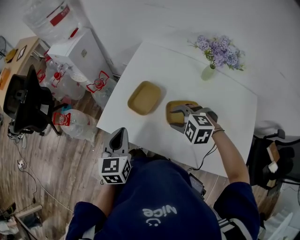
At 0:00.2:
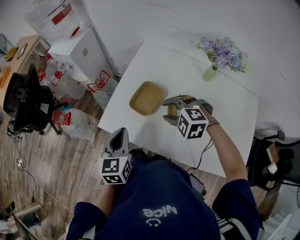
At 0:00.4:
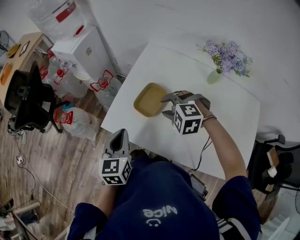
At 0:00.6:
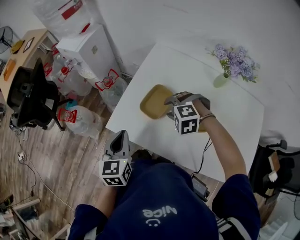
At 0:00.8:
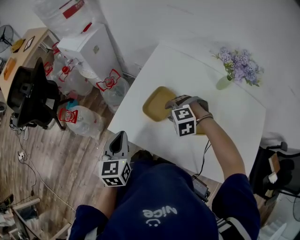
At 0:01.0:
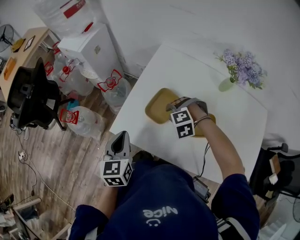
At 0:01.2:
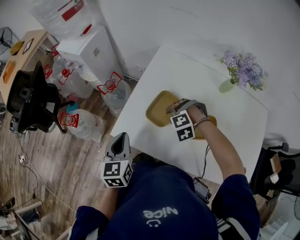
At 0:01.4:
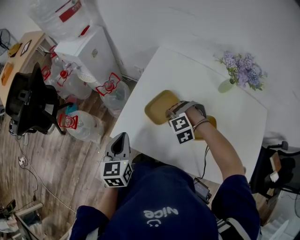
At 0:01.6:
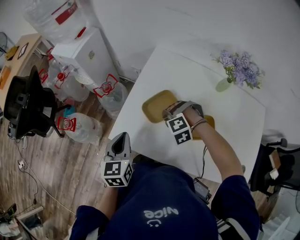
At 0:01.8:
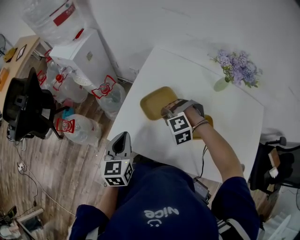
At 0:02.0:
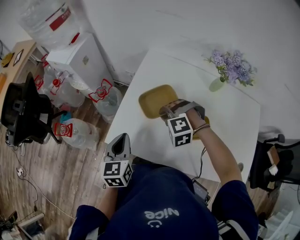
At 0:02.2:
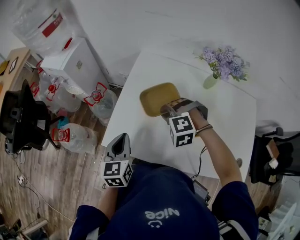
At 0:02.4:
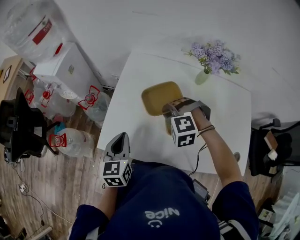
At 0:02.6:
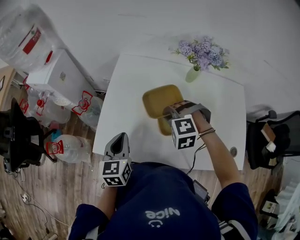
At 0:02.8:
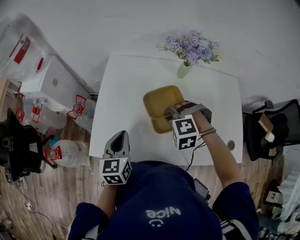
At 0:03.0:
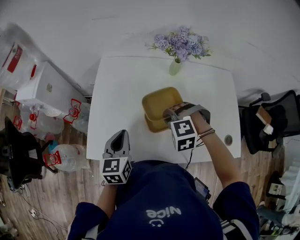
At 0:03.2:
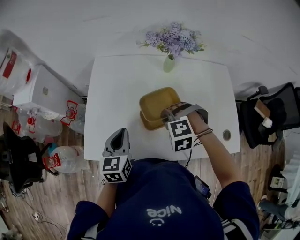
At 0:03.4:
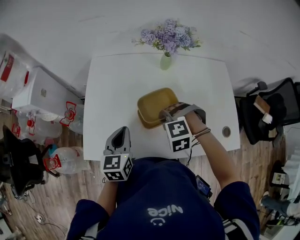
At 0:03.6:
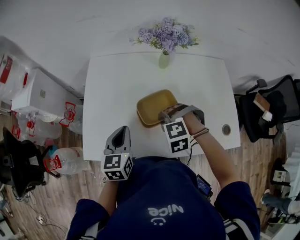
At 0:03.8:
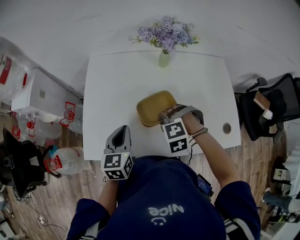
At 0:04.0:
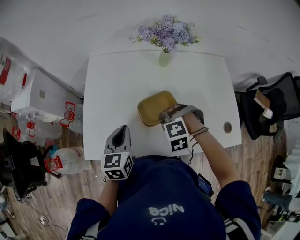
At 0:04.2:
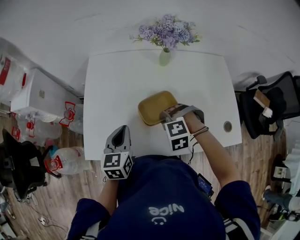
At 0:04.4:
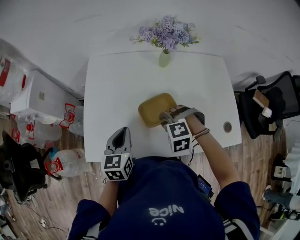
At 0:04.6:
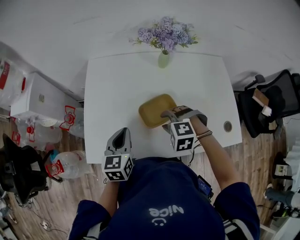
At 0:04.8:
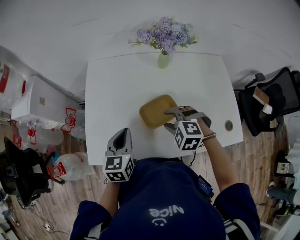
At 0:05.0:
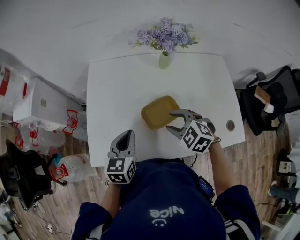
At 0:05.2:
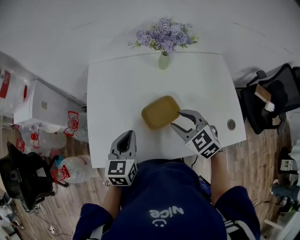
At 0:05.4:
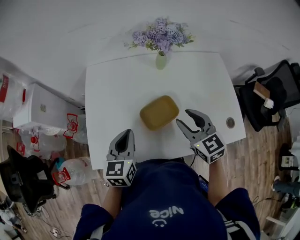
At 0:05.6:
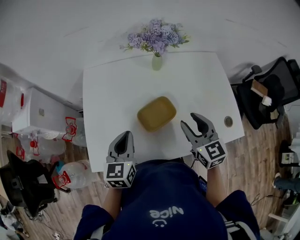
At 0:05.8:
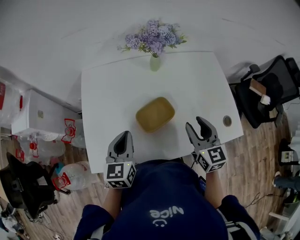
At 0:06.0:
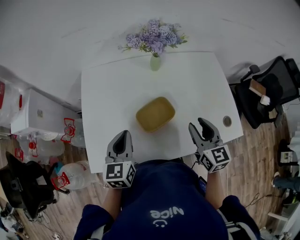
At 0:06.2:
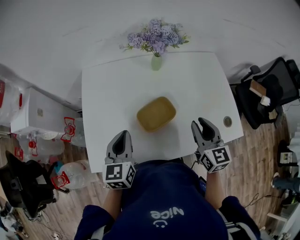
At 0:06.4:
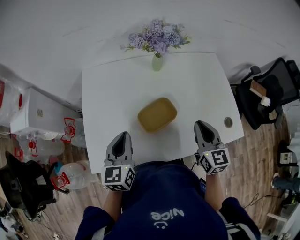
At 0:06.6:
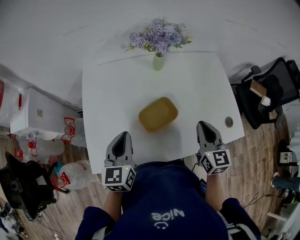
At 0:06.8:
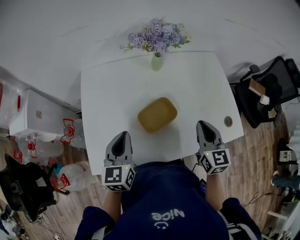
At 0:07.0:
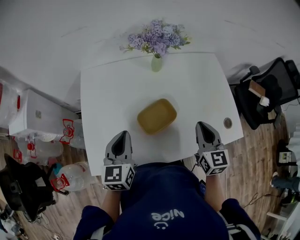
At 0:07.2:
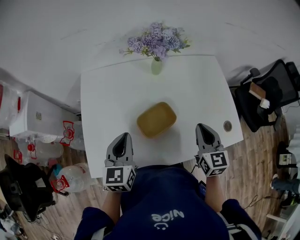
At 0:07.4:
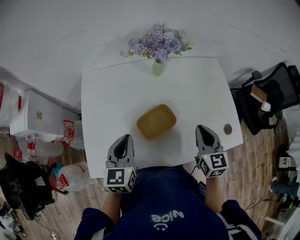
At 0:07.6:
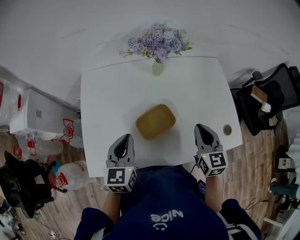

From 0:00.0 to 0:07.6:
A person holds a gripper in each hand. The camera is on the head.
From 0:00.0 to 0:01.6: The right gripper moves approximately 15 cm, rotates about 30 degrees, and closes. The left gripper shifts by some 10 cm.
From 0:01.6 to 0:03.0: The right gripper changes place by approximately 20 cm, and rotates approximately 30 degrees. The left gripper shifts by about 15 cm, and changes its angle by roughly 20 degrees.
From 0:03.0 to 0:04.6: The right gripper changes place by approximately 5 cm, and opens its fingers.
From 0:04.6 to 0:06.0: The right gripper moves to the right and upward, approximately 15 cm, and tips its fingers upward by some 50 degrees.
From 0:06.0 to 0:07.6: The right gripper closes up.

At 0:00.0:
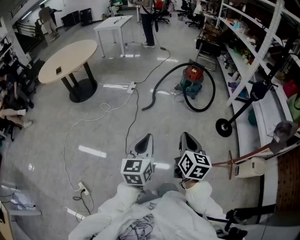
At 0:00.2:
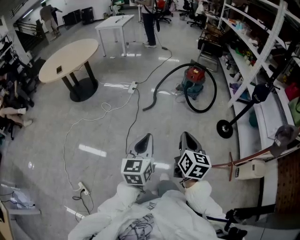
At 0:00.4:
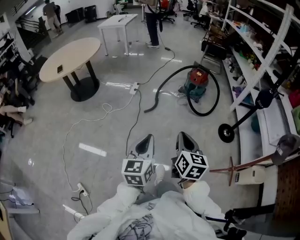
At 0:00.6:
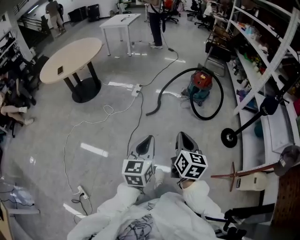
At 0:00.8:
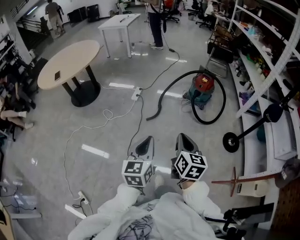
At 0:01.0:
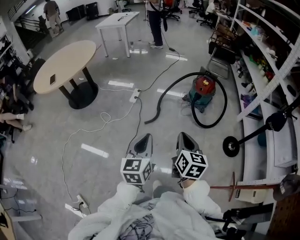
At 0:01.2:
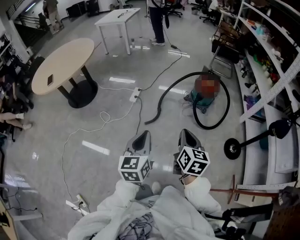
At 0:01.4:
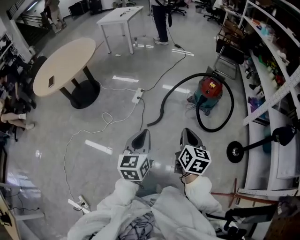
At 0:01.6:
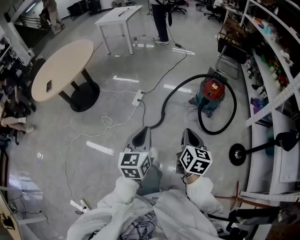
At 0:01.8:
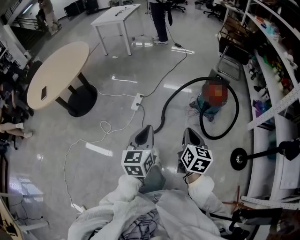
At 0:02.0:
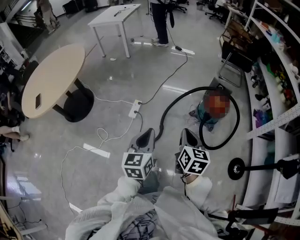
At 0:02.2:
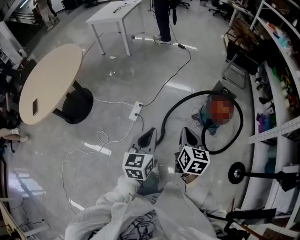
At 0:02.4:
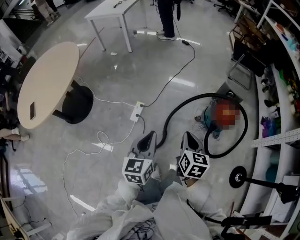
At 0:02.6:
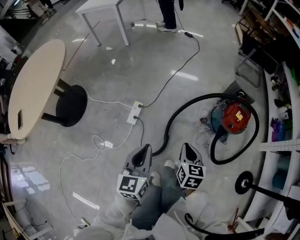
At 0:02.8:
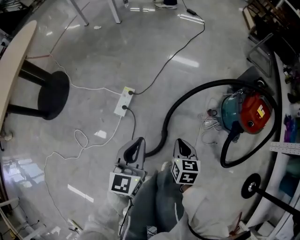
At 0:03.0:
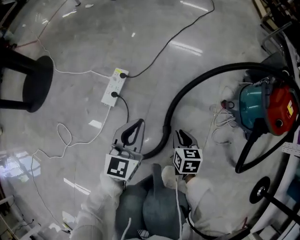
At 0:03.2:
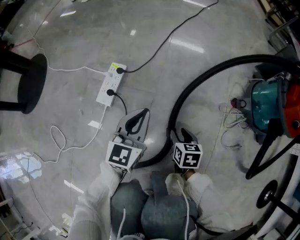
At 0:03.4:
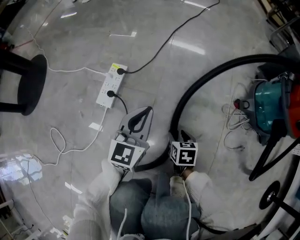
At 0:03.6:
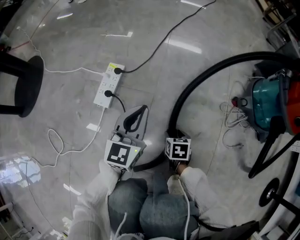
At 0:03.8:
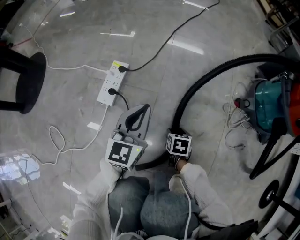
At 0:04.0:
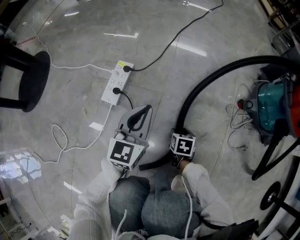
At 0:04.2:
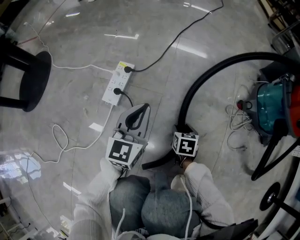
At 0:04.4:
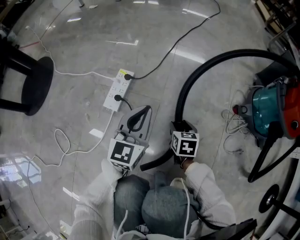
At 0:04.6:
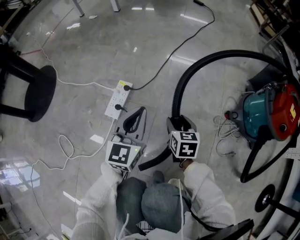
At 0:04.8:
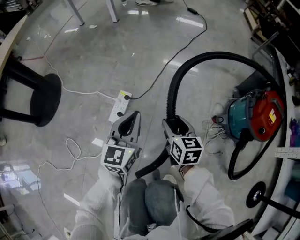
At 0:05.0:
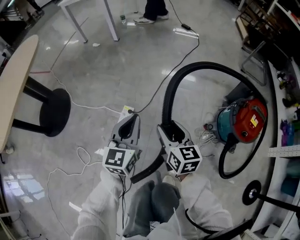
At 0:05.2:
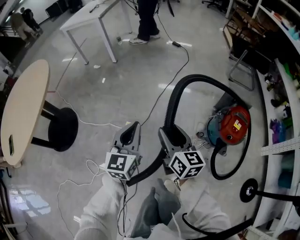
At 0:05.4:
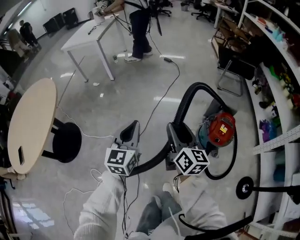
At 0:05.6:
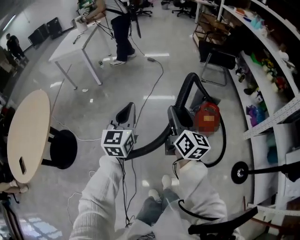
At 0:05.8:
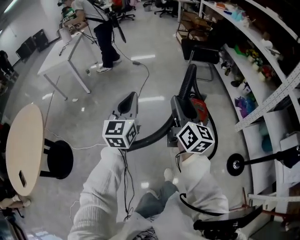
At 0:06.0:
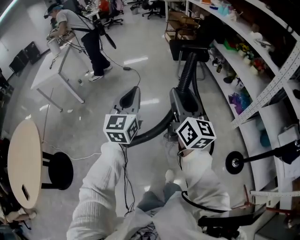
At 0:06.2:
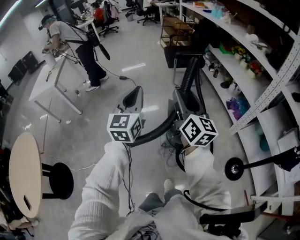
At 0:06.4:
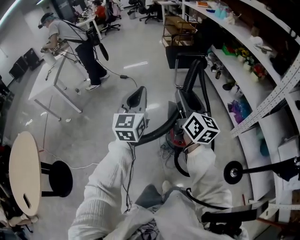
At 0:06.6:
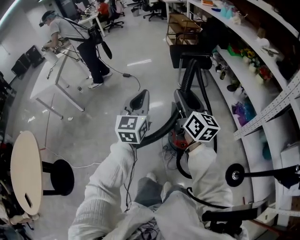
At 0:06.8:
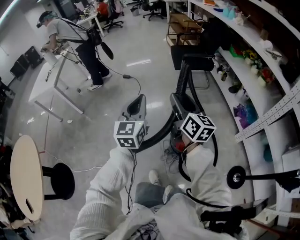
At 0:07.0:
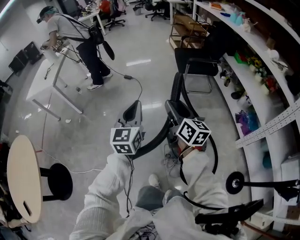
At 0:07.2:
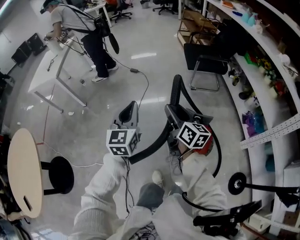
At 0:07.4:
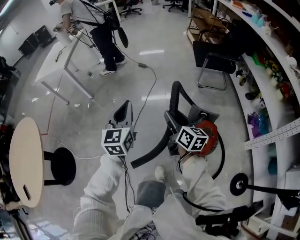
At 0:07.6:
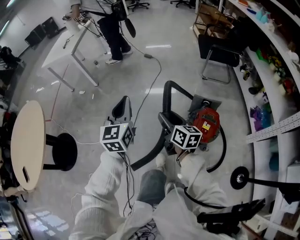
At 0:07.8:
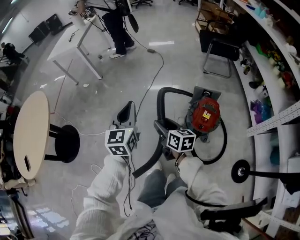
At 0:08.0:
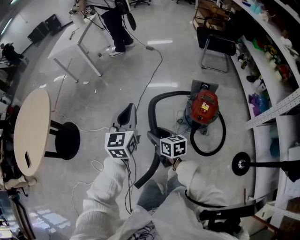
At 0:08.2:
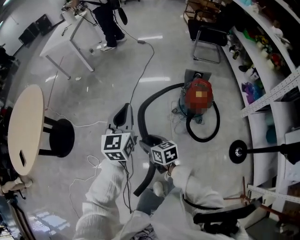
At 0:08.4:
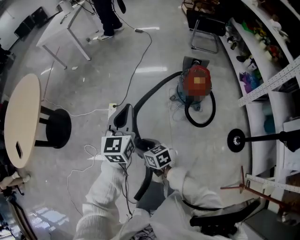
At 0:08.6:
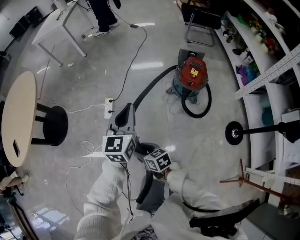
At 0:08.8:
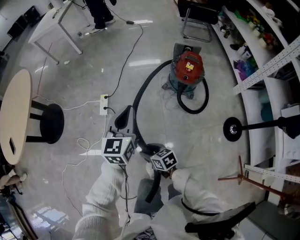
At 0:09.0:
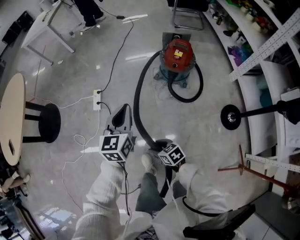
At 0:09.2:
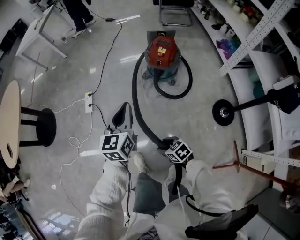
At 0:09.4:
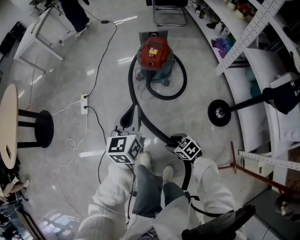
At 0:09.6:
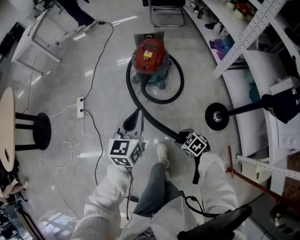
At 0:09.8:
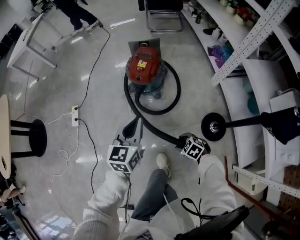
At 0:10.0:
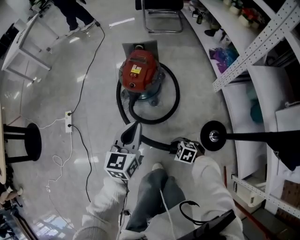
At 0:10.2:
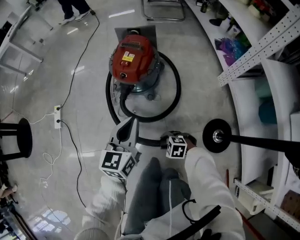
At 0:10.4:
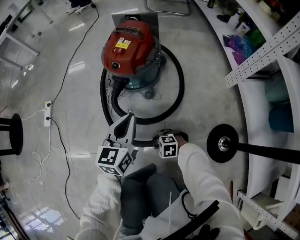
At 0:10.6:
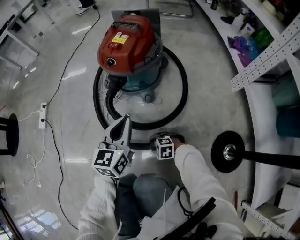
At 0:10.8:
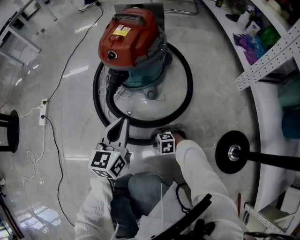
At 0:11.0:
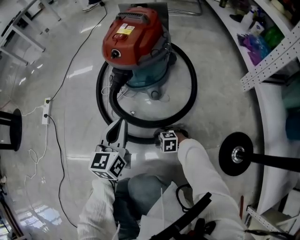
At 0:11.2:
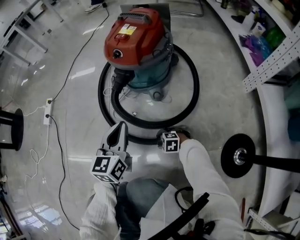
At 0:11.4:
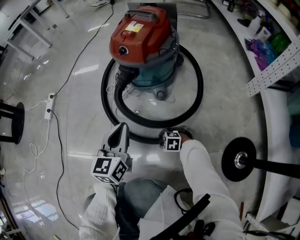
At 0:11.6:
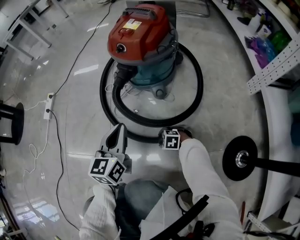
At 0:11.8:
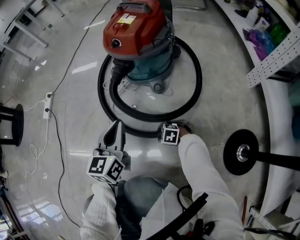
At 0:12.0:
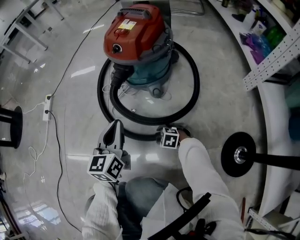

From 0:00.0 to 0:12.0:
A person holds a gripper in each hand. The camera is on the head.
From 0:00.0 to 0:01.6: Both grippers are carried forward, approximately 50 cm.
From 0:01.6 to 0:03.0: The pair of grippers is taken forward, some 60 cm. Both grippers travel together downward, some 70 cm. The right gripper changes its angle by about 30 degrees.
From 0:03.0 to 0:04.4: Both grippers move downward and forward, roughly 10 cm. The right gripper opens up.
From 0:04.4 to 0:06.0: The grippers both shift upward by about 90 cm. The right gripper tilts its fingers about 60 degrees upward. The left gripper turns by some 20 degrees.
From 0:06.0 to 0:07.6: The left gripper changes place by approximately 20 cm, and changes its angle by about 20 degrees. Meanwhile the right gripper heads downward, covering approximately 25 cm, and changes its angle by roughly 40 degrees.
From 0:07.6 to 0:09.0: The pair of grippers is taken backward, approximately 50 cm. The right gripper travels downward by some 25 cm, and points its fingers about 30 degrees further downward.
From 0:09.0 to 0:10.4: The pair of grippers is taken to the right, approximately 40 cm. The grippers both shift downward by approximately 40 cm. The right gripper twists approximately 50 degrees counterclockwise, seen from behind.
From 0:10.4 to 0:12.0: The right gripper travels downward by some 15 cm. Meanwhile the left gripper shifts approximately 15 cm downward and to the left.

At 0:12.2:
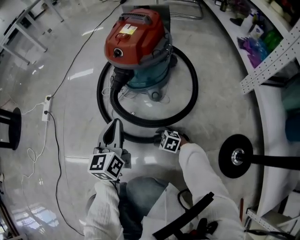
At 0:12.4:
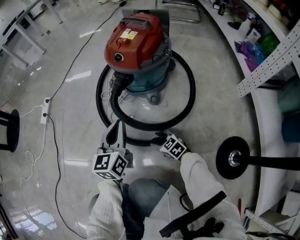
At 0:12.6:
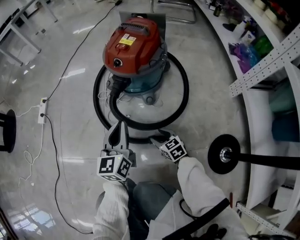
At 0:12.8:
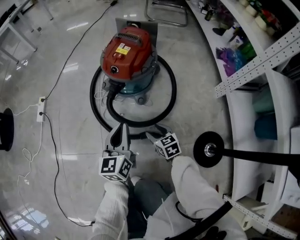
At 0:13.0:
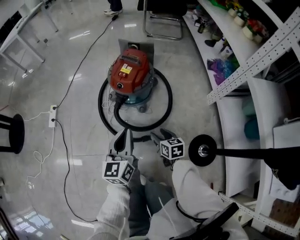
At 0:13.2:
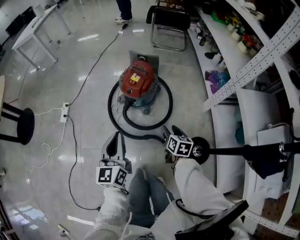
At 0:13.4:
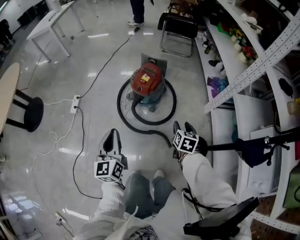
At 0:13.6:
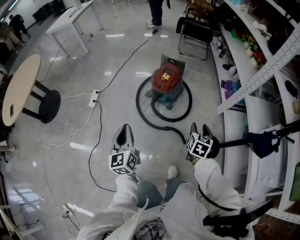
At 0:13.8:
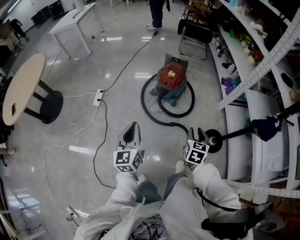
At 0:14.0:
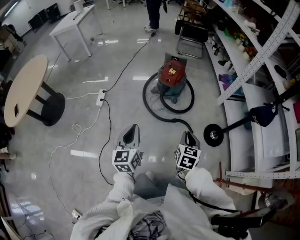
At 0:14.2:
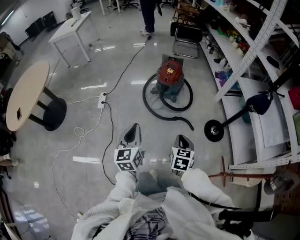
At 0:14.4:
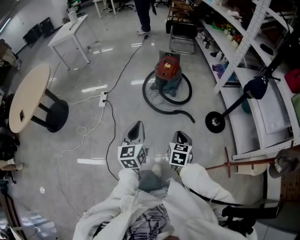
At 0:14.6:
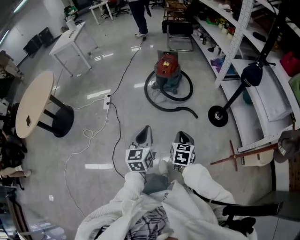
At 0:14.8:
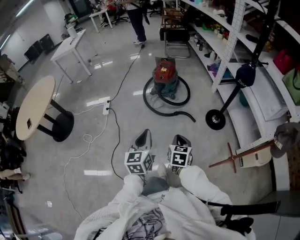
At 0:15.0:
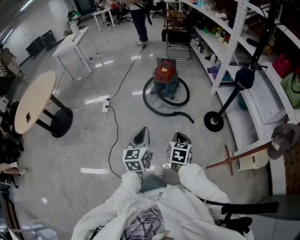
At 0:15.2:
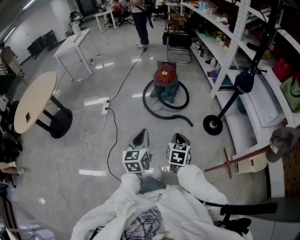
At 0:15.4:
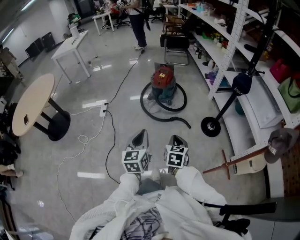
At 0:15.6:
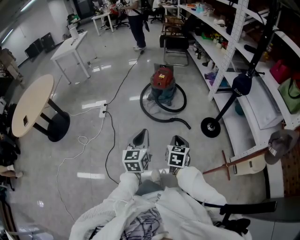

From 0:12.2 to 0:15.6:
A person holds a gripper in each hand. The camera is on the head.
From 0:12.2 to 0:13.8: Both grippers move upward, some 70 cm. The right gripper swivels approximately 80 degrees.
From 0:13.8 to 0:15.6: The grippers both shift backward by some 30 cm. The right gripper closes its fingers.
